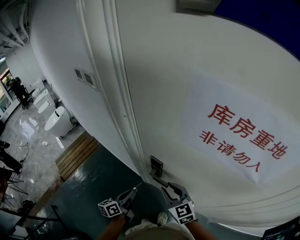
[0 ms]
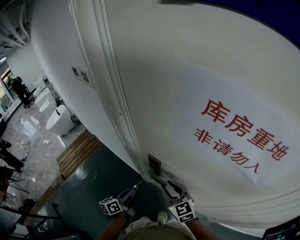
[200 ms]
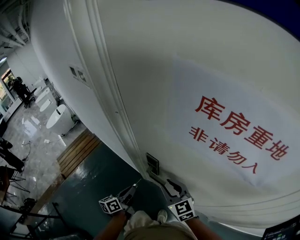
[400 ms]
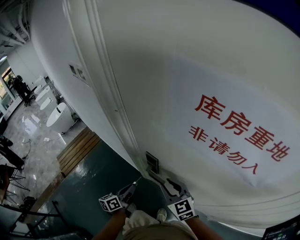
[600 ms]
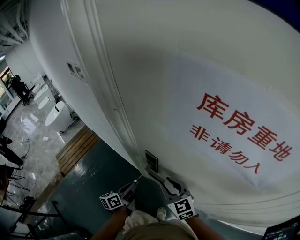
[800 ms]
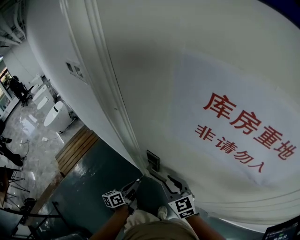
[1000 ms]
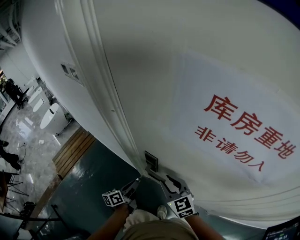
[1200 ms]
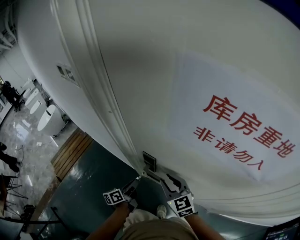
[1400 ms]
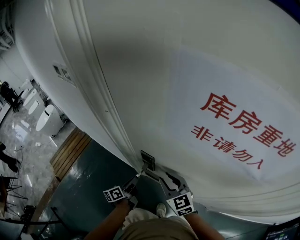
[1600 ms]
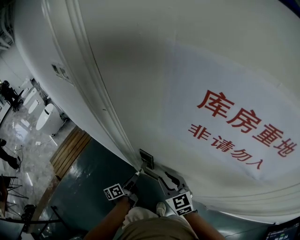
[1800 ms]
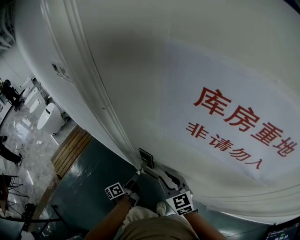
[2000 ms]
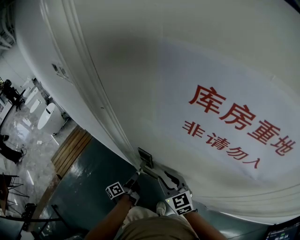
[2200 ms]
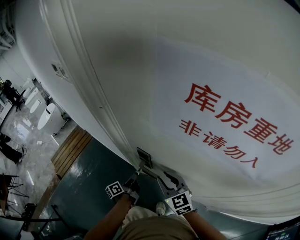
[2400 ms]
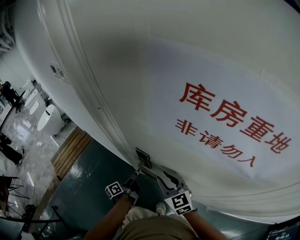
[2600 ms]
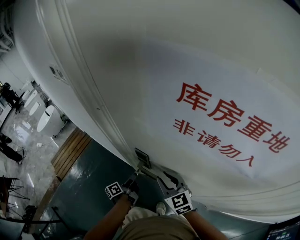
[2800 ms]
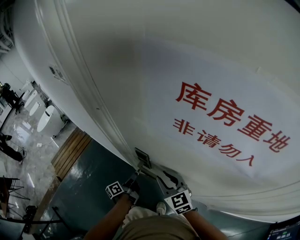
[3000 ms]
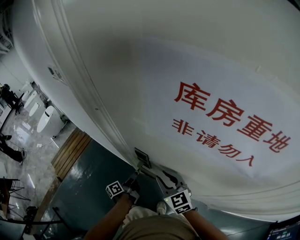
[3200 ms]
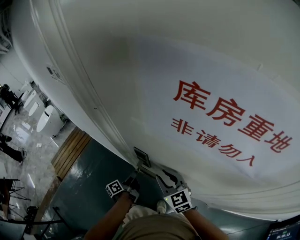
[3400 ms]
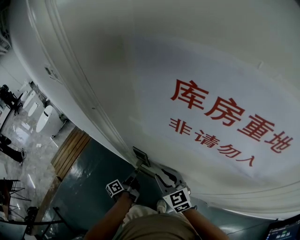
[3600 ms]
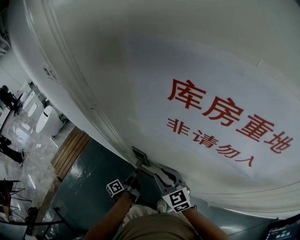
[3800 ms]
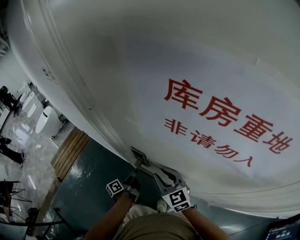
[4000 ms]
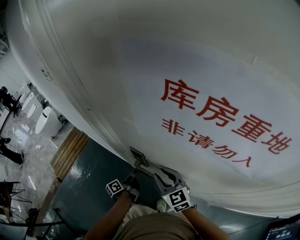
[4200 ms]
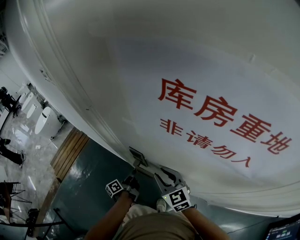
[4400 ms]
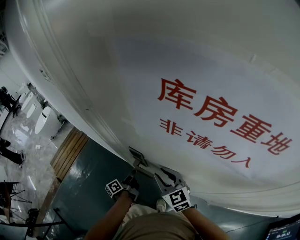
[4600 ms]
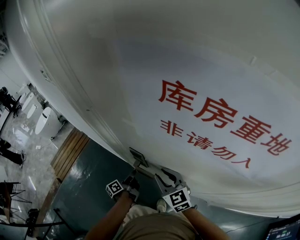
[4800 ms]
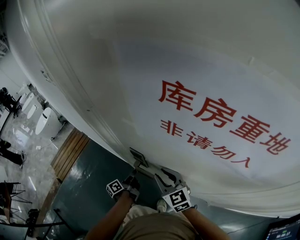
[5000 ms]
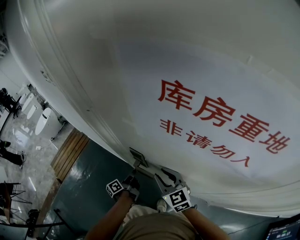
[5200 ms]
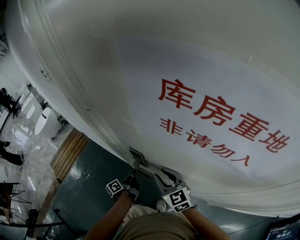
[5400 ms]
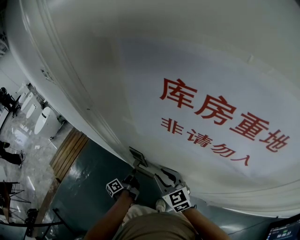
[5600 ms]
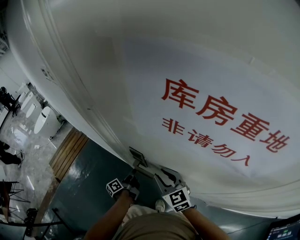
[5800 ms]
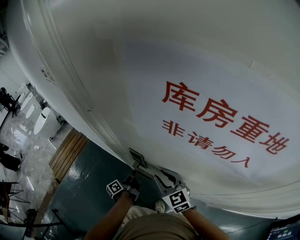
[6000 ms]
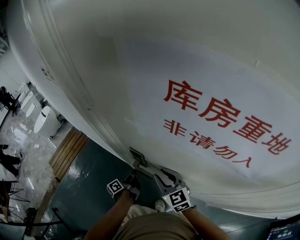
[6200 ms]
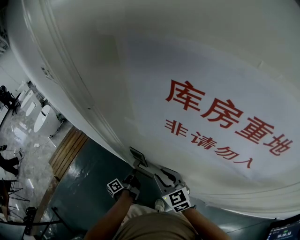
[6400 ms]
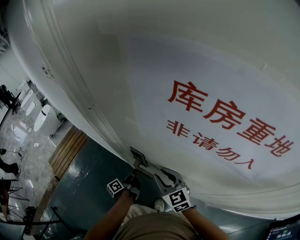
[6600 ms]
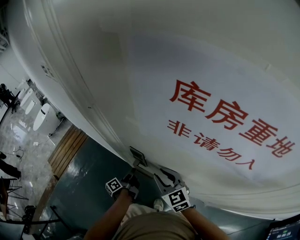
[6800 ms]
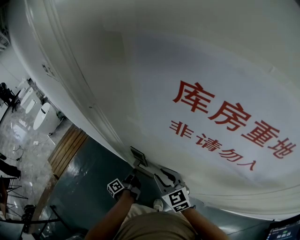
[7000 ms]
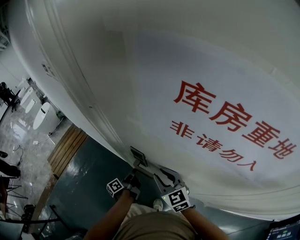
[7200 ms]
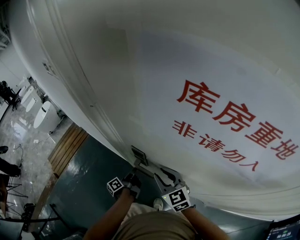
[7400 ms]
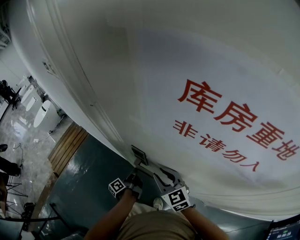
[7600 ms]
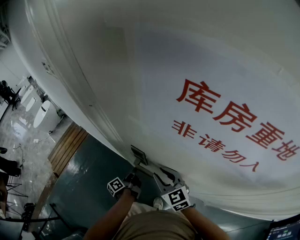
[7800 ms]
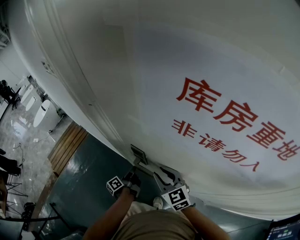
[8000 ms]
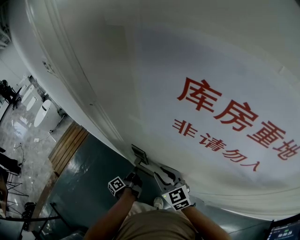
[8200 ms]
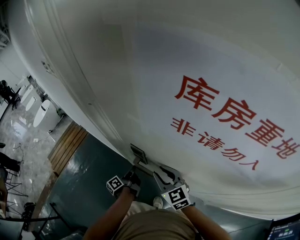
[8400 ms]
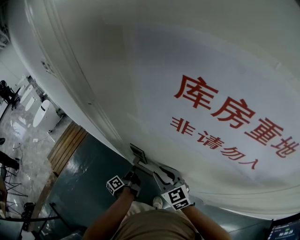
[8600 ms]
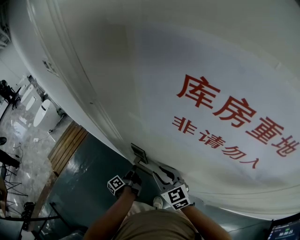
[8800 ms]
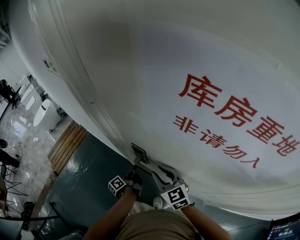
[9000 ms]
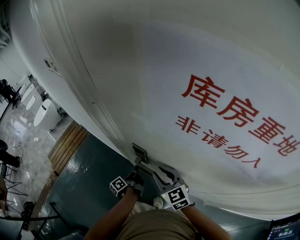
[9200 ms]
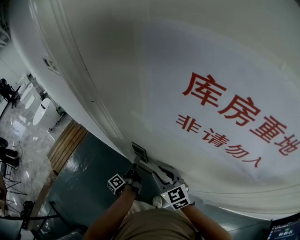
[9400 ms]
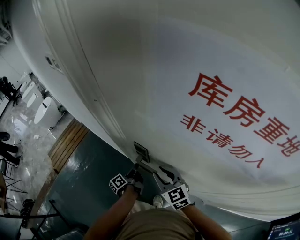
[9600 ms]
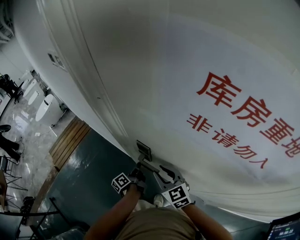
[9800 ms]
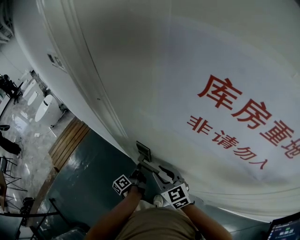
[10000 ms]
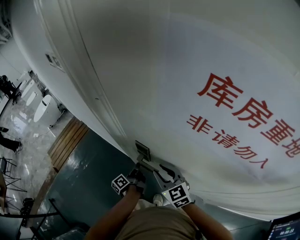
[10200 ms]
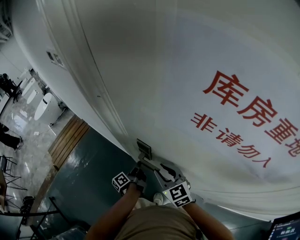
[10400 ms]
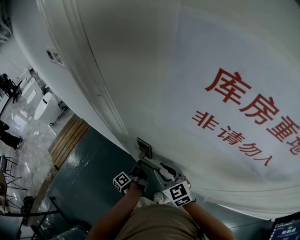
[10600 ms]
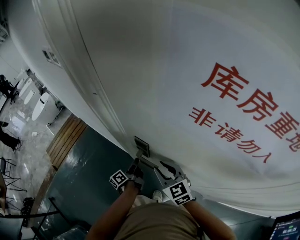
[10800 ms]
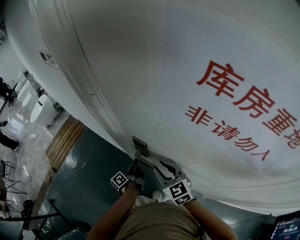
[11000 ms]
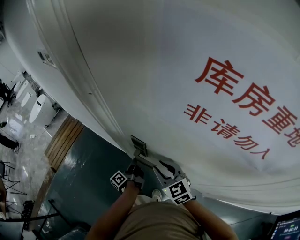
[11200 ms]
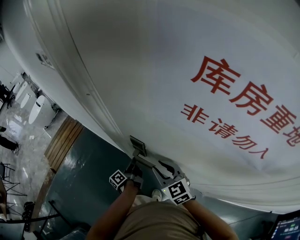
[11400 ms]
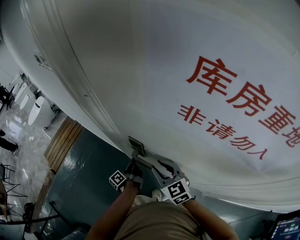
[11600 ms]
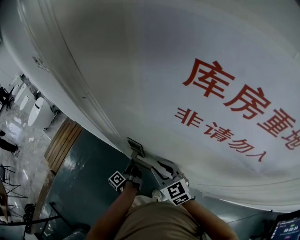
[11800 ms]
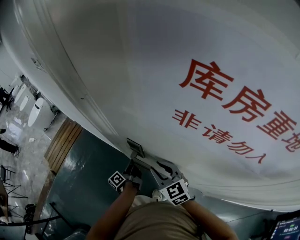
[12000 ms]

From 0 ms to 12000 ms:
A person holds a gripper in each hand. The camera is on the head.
From 0 ms to 1600 ms: The left gripper moves downward and forward, approximately 10 cm.
From 1600 ms to 4400 ms: The grippers move only a little.
From 4400 ms to 6000 ms: Both grippers stay about where they are.
From 6000 ms to 7600 ms: The grippers make only small movements.
From 7600 ms to 9000 ms: Both grippers stay about where they are.
From 9000 ms to 12000 ms: The grippers stay close to where they were, moving slightly.

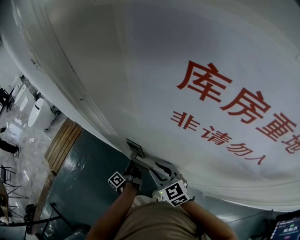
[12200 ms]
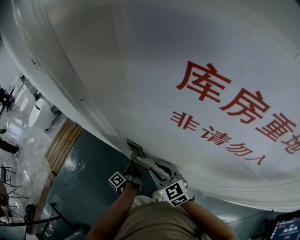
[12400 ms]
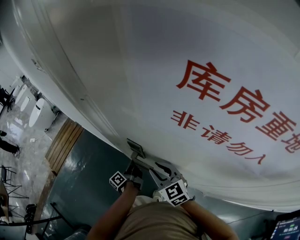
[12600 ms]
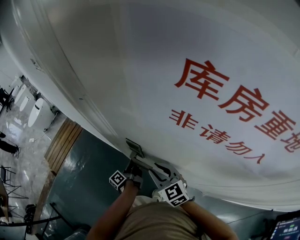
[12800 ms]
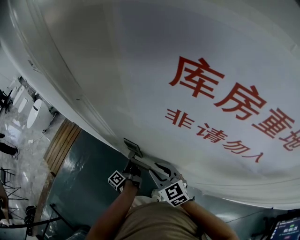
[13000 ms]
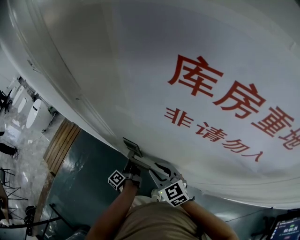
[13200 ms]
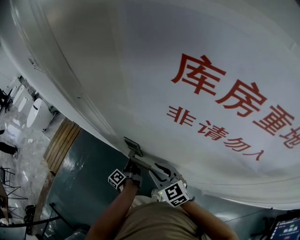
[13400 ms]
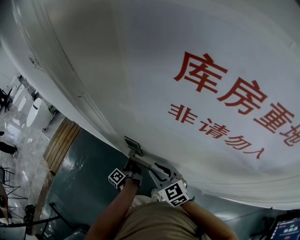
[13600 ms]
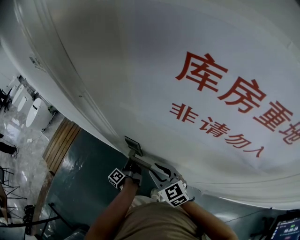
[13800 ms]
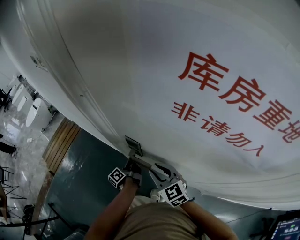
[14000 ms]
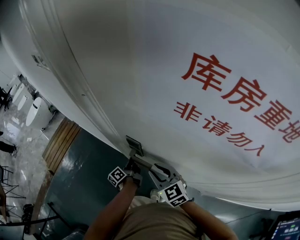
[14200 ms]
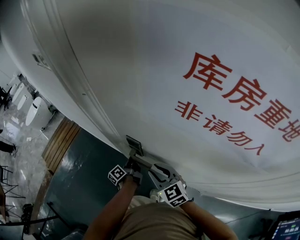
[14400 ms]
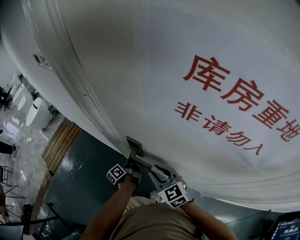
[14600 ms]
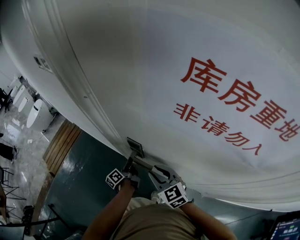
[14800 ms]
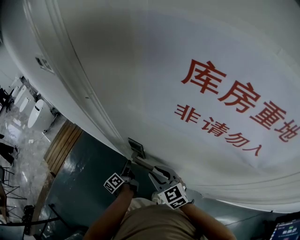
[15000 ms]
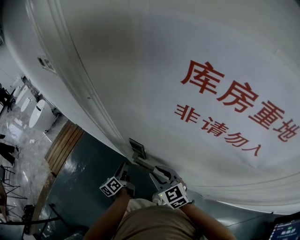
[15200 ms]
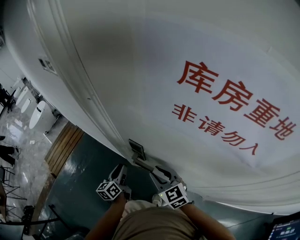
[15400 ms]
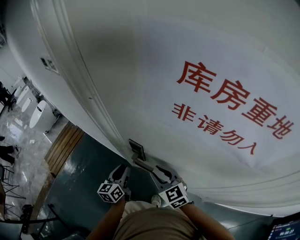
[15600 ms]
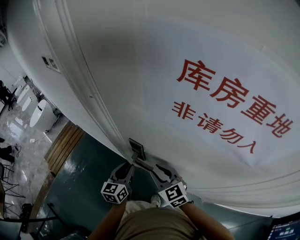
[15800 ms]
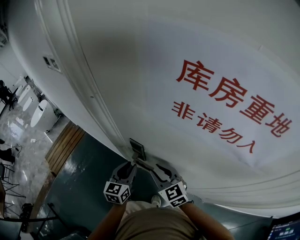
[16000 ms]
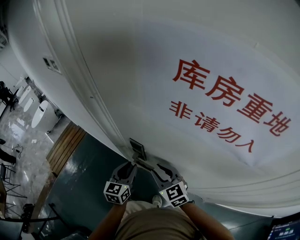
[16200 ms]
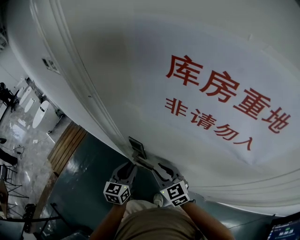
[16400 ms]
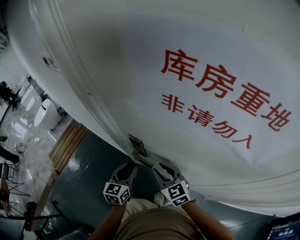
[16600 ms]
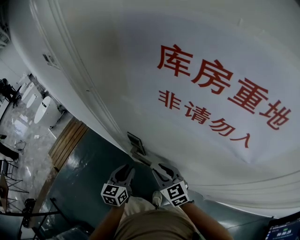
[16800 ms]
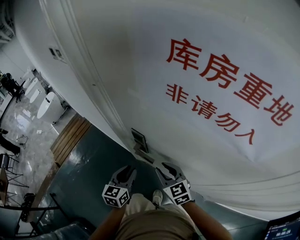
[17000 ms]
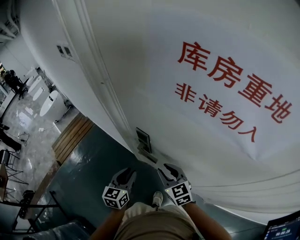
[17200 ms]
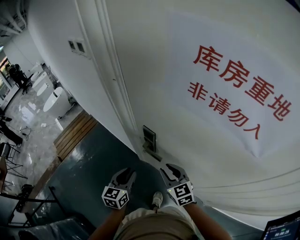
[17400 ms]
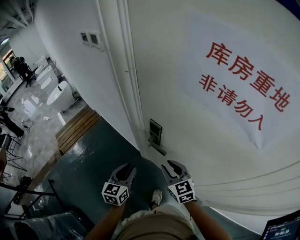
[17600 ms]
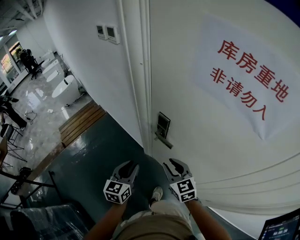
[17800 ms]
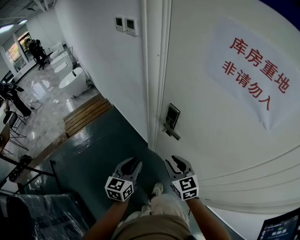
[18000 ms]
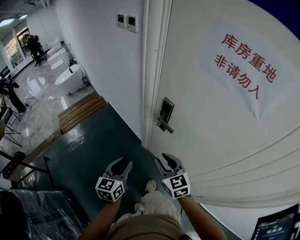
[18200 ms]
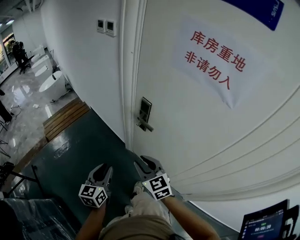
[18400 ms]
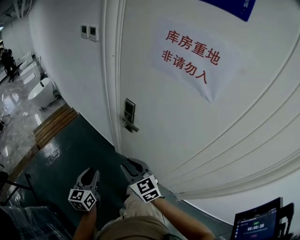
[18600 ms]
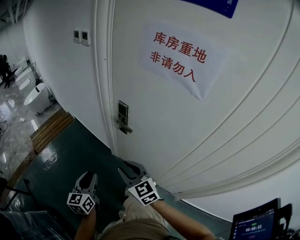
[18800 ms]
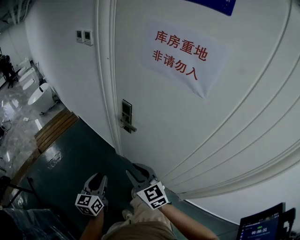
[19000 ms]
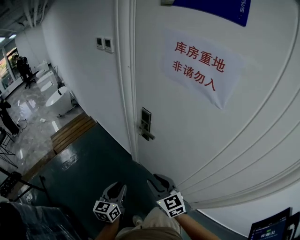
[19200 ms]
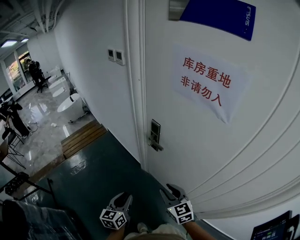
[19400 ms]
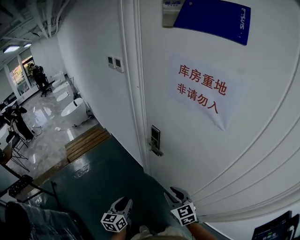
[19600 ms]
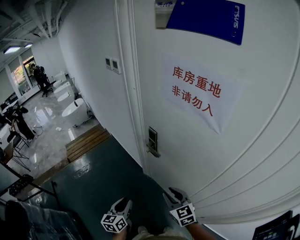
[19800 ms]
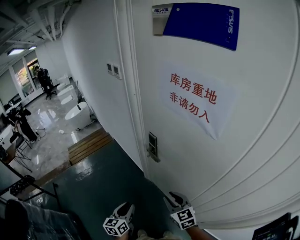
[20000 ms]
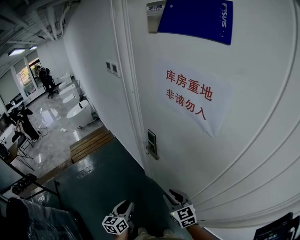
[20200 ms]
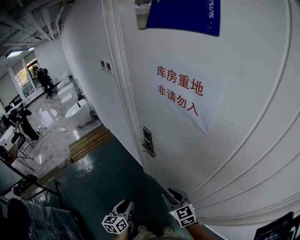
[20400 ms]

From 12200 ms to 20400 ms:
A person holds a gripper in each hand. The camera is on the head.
From 12200 ms to 13800 ms: There are only small adjustments of the grippers.
From 13800 ms to 15400 ms: The left gripper travels upward and to the left by approximately 10 cm, and rotates around the line of its fingers by about 50 degrees, clockwise from behind.
From 15400 ms to 17200 ms: The left gripper goes approximately 10 cm backward and upward, and turns by approximately 30 degrees.
From 17200 ms to 18800 ms: The two grippers go about 25 cm backward and to the left.
From 18800 ms to 20400 ms: The left gripper moves to the right and backward, about 15 cm, while the right gripper shifts some 15 cm to the right.

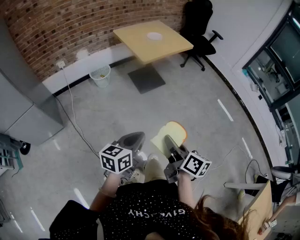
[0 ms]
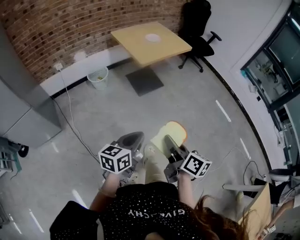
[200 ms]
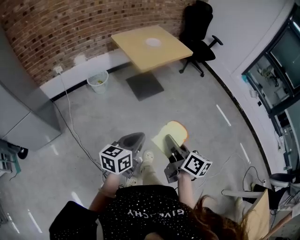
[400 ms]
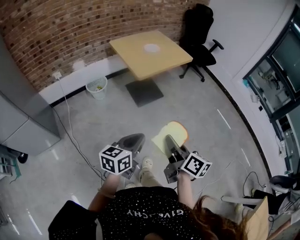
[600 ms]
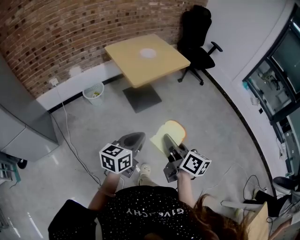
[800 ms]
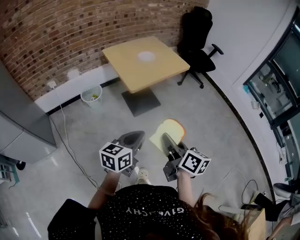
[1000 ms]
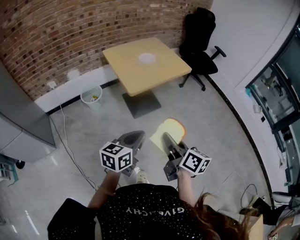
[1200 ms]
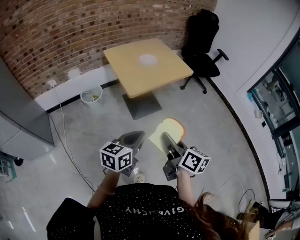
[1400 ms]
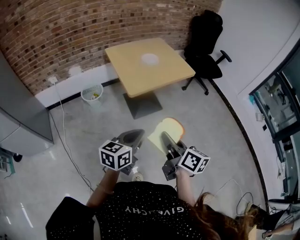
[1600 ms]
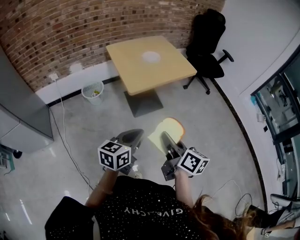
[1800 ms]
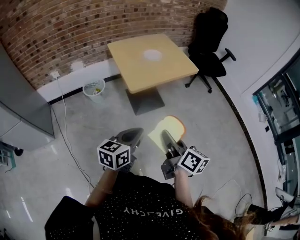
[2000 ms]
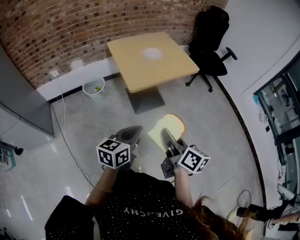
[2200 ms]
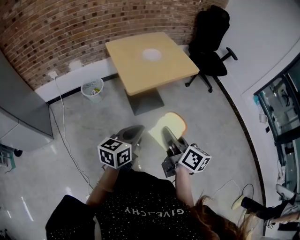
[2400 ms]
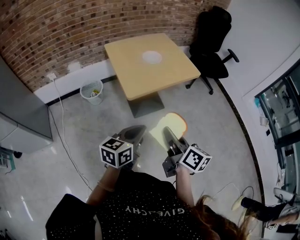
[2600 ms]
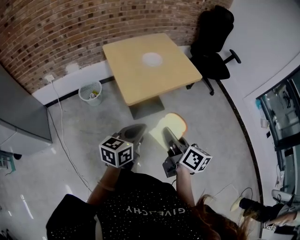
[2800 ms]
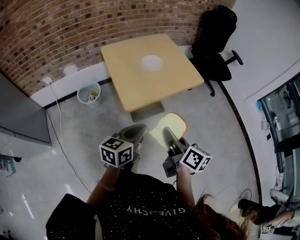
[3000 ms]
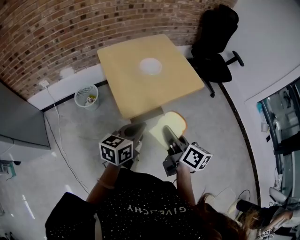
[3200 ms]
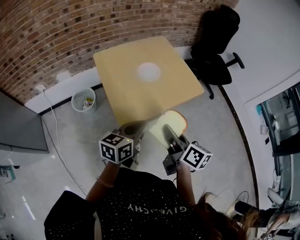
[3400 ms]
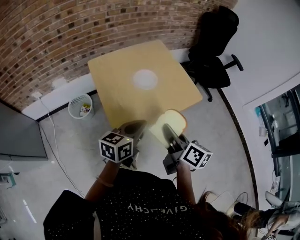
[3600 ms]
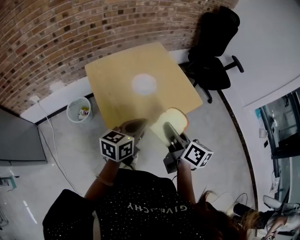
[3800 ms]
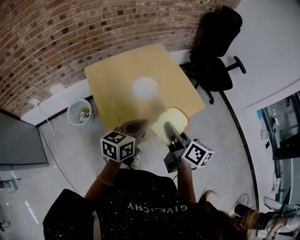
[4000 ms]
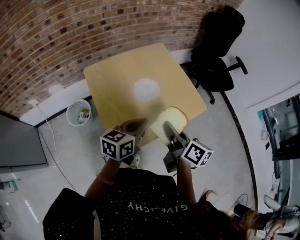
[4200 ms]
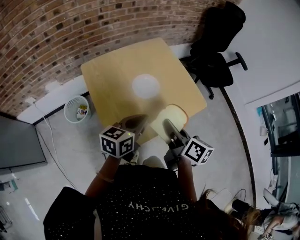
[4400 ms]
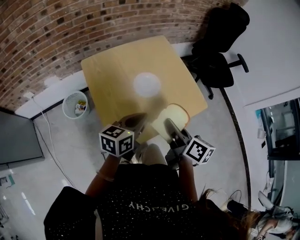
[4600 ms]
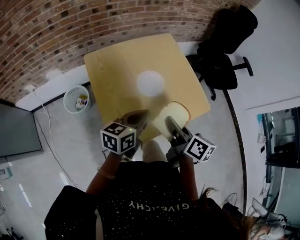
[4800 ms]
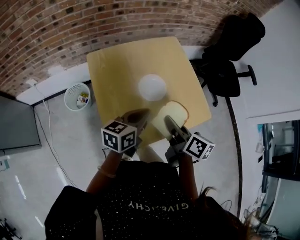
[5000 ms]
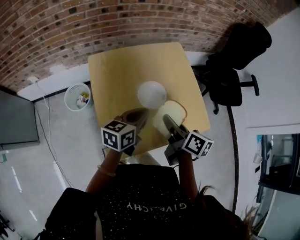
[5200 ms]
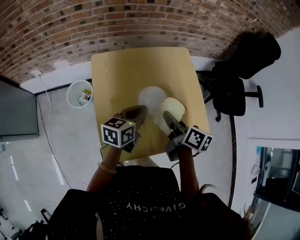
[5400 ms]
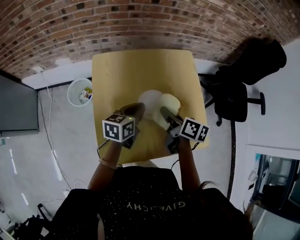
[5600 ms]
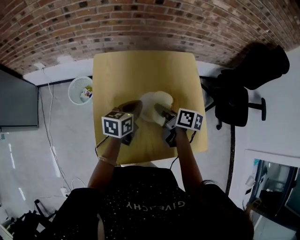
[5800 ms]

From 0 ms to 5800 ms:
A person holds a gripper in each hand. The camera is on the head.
From 0 ms to 1400 ms: Both grippers travel together forward, roughly 30 cm.
From 1400 ms to 2800 ms: The two grippers go some 15 cm forward.
From 2800 ms to 4400 ms: The two grippers go some 35 cm forward.
From 4400 ms to 5800 ms: The right gripper ends up about 25 cm from where it was, and changes its angle by roughly 40 degrees, while the left gripper moves approximately 20 cm, and rotates roughly 30 degrees.
